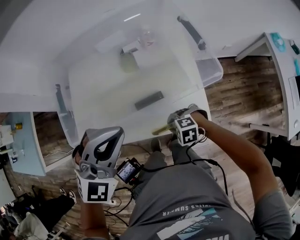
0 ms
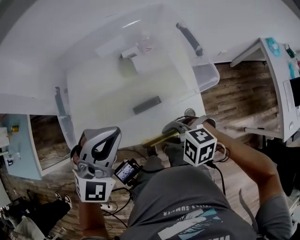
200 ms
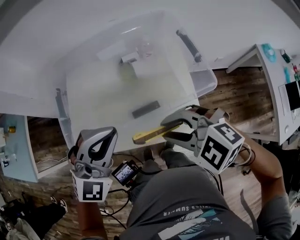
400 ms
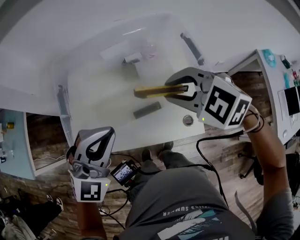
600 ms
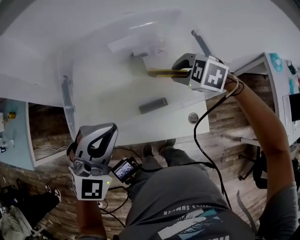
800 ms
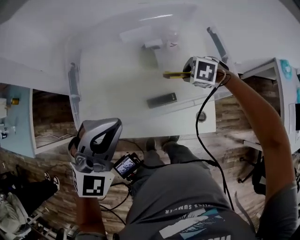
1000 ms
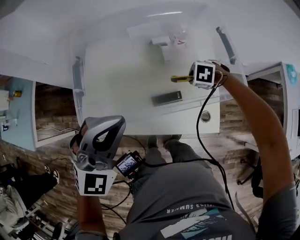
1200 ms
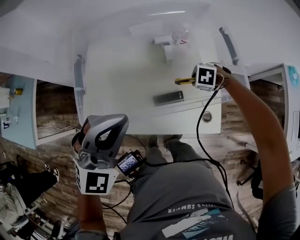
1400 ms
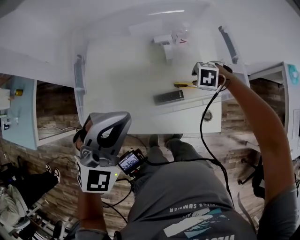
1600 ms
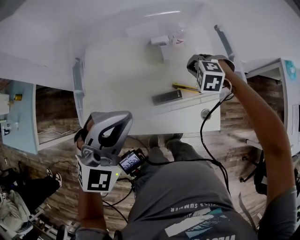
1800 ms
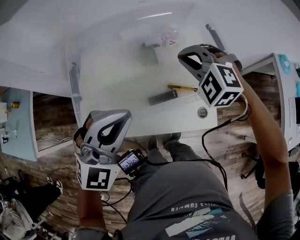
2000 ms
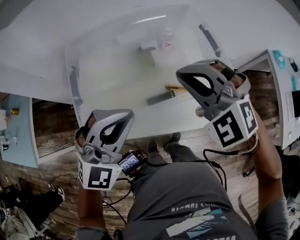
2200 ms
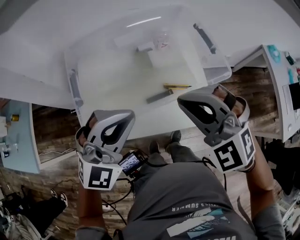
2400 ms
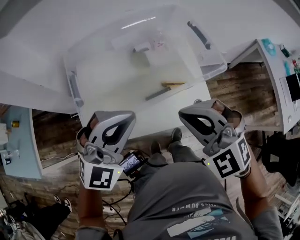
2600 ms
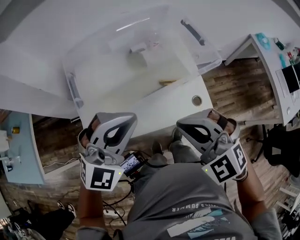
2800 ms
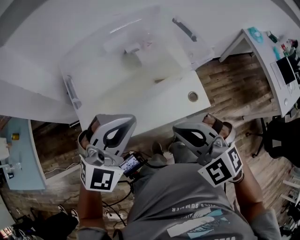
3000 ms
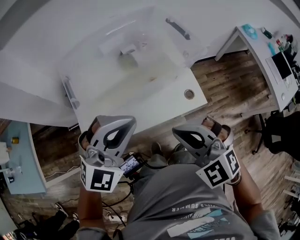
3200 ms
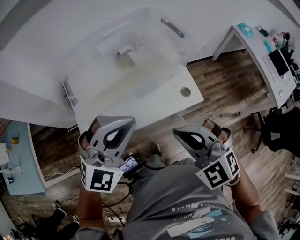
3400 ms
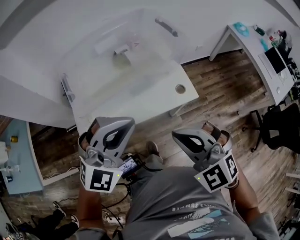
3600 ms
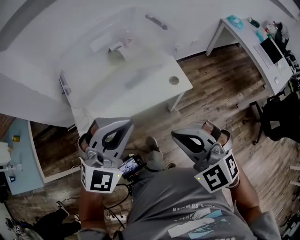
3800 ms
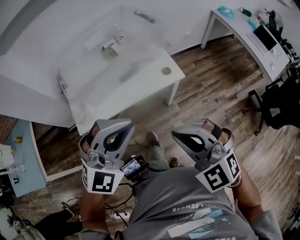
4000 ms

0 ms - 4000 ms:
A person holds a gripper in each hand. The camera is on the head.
0 ms - 1400 ms: The left gripper ends up roughly 5 cm from where it was; the right gripper moves about 30 cm upward and comes back.
1400 ms - 2600 ms: The right gripper is displaced upward by approximately 30 cm, tilts its fingers roughly 50 degrees upward, and closes its fingers.
2600 ms - 4000 ms: The two grippers go about 25 cm backward.

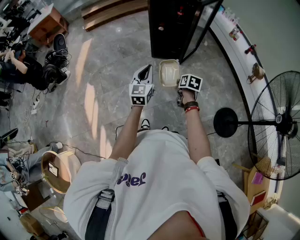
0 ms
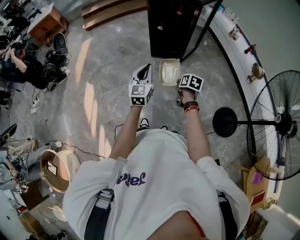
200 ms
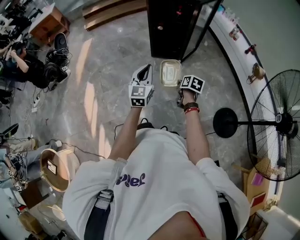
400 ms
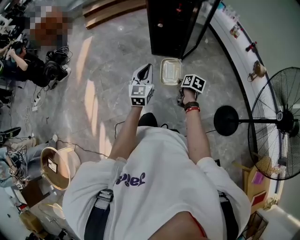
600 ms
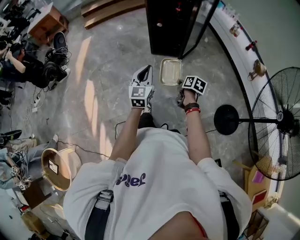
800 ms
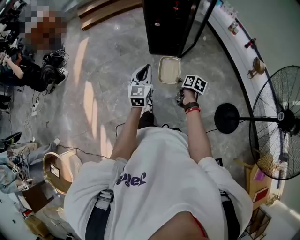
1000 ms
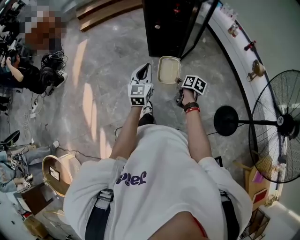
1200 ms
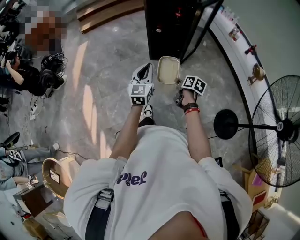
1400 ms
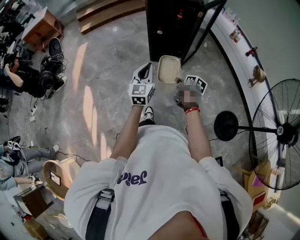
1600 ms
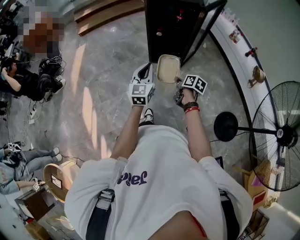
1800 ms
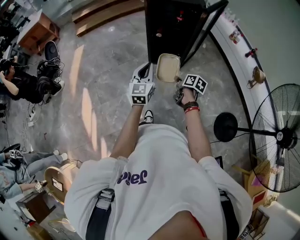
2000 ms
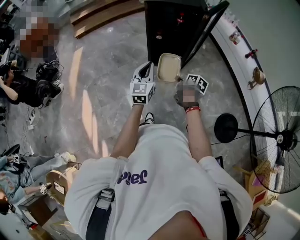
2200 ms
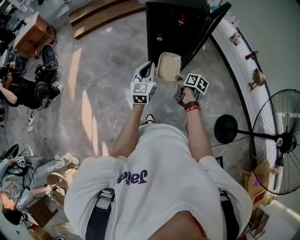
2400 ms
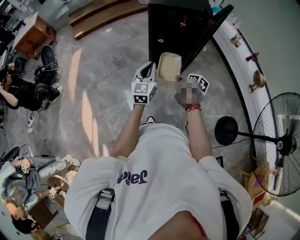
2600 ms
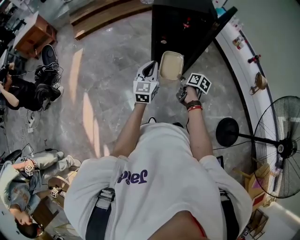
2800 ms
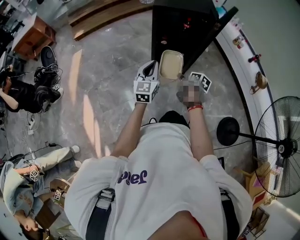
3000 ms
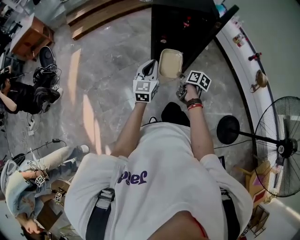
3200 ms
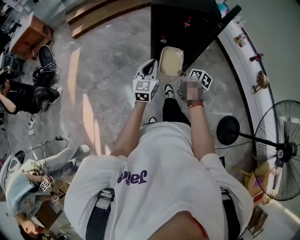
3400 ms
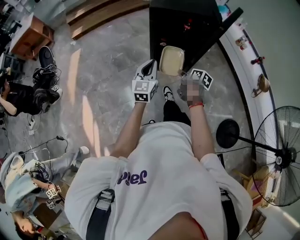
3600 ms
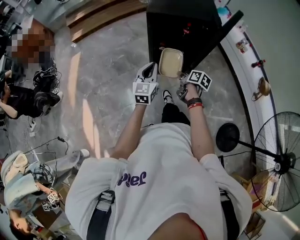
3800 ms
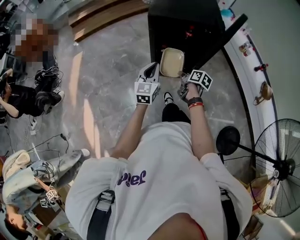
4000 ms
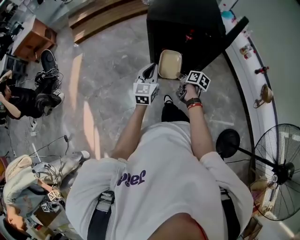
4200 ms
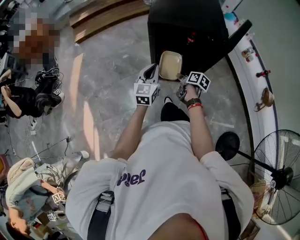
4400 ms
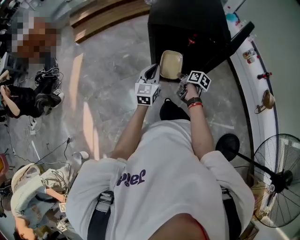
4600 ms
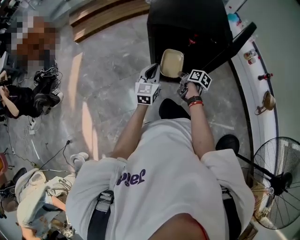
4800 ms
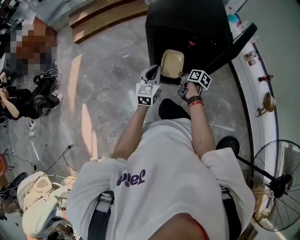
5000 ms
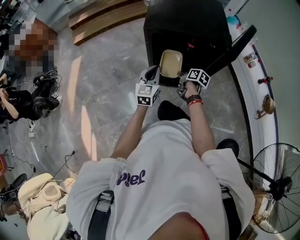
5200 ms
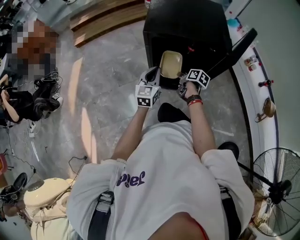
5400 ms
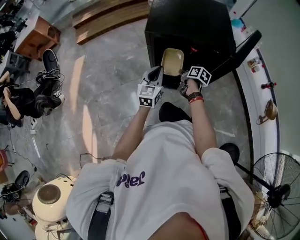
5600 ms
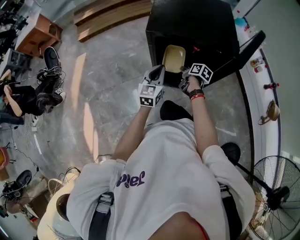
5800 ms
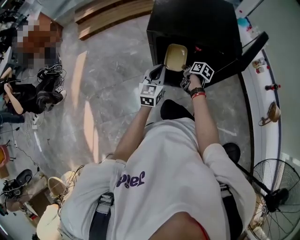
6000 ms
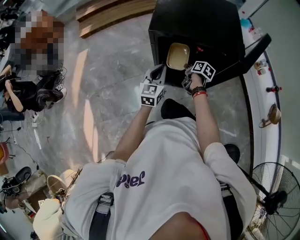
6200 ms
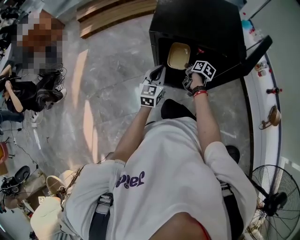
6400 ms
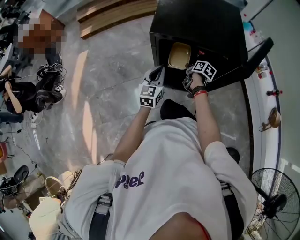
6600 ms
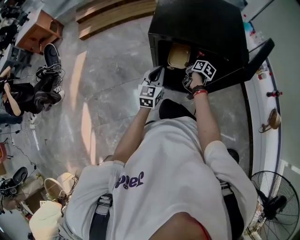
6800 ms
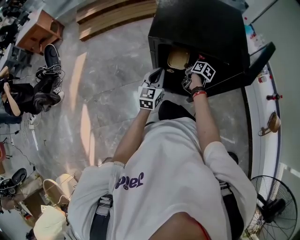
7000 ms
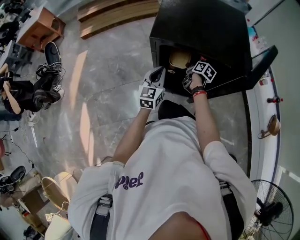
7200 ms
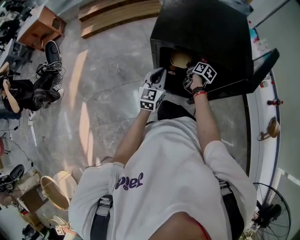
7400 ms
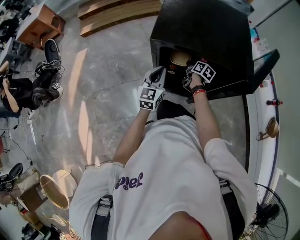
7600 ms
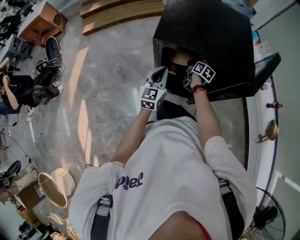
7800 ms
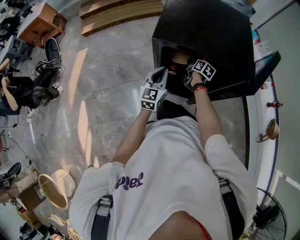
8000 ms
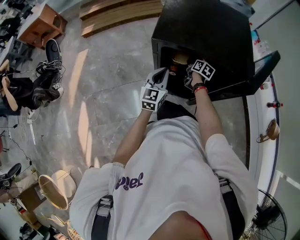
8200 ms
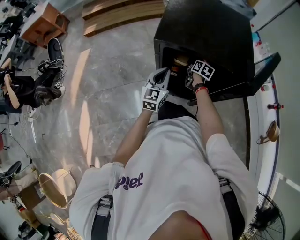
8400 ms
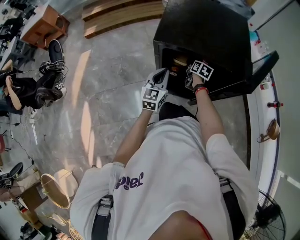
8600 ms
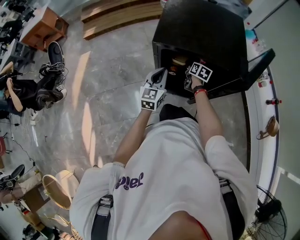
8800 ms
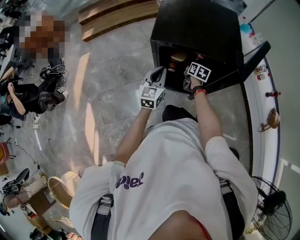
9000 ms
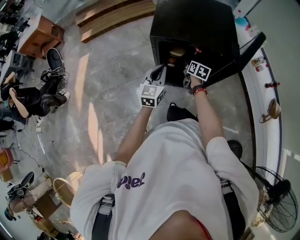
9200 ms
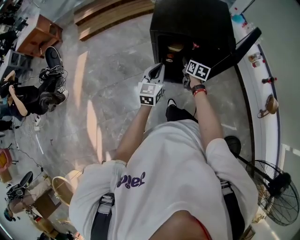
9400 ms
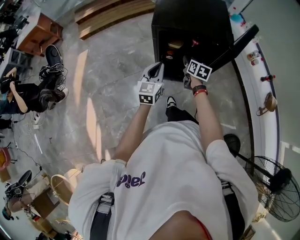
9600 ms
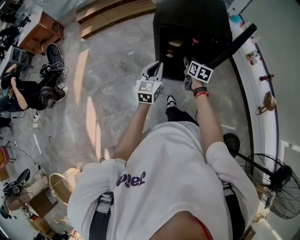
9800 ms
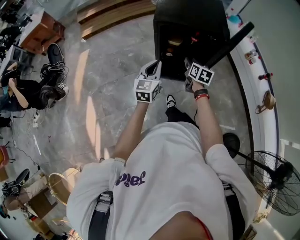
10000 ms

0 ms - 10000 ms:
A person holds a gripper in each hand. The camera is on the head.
0 ms - 1400 ms: Both grippers travel together forward, some 10 cm.
1400 ms - 2800 ms: Both grippers travel together forward, roughly 25 cm.
2800 ms - 4200 ms: The grippers both shift forward by about 20 cm.
4200 ms - 5800 ms: The left gripper shifts roughly 15 cm forward and downward. The right gripper goes some 20 cm forward.
5800 ms - 7200 ms: The right gripper goes about 10 cm forward. The left gripper is displaced forward and downward by approximately 10 cm.
7200 ms - 8600 ms: The right gripper changes its angle by about 20 degrees, and opens.
8600 ms - 10000 ms: Both grippers move backward and upward, approximately 30 cm.

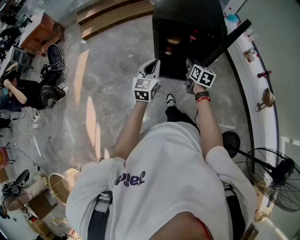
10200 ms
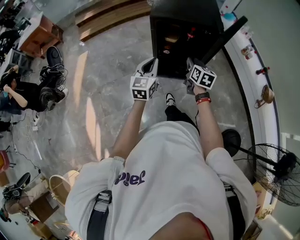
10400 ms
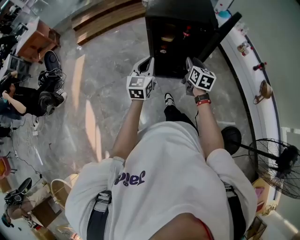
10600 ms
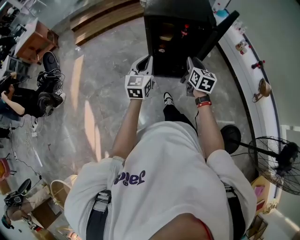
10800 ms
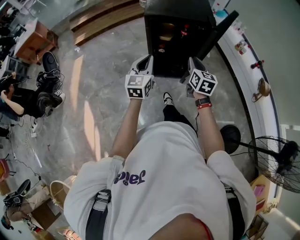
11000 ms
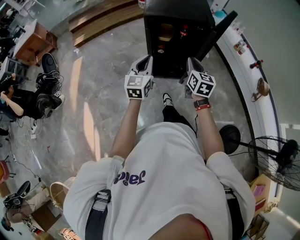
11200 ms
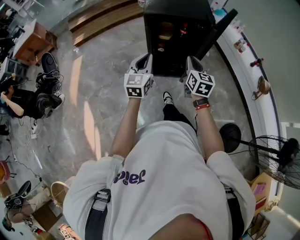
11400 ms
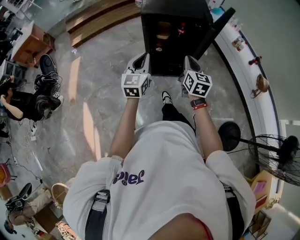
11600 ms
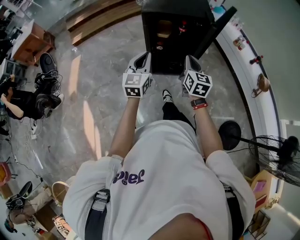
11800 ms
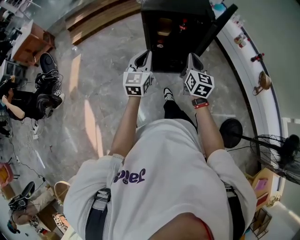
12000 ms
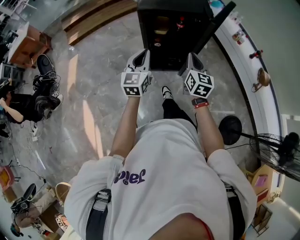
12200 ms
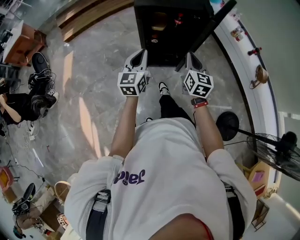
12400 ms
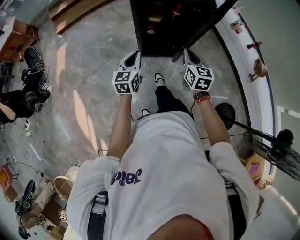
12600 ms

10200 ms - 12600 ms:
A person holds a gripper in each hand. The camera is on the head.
10200 ms - 11400 ms: The right gripper moves backward and upward, some 15 cm, and closes its fingers. The left gripper moves backward, about 5 cm.
11400 ms - 12600 ms: The right gripper is displaced forward and downward by approximately 10 cm, while the left gripper travels downward and forward by roughly 10 cm.

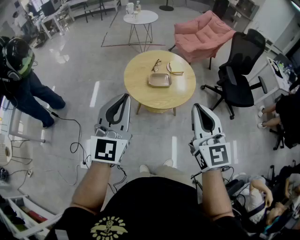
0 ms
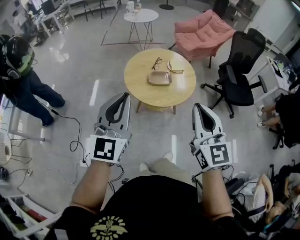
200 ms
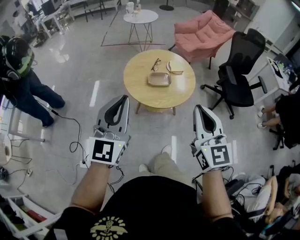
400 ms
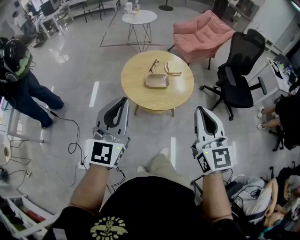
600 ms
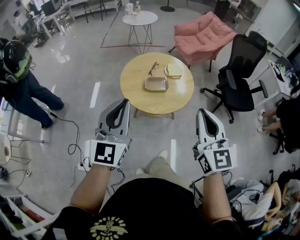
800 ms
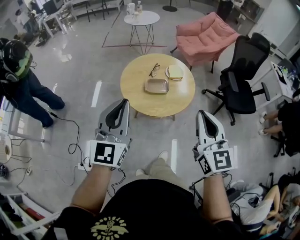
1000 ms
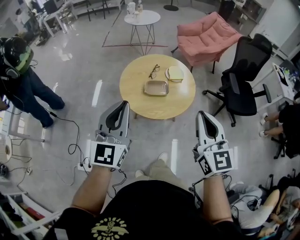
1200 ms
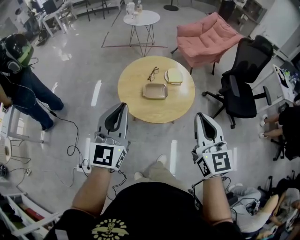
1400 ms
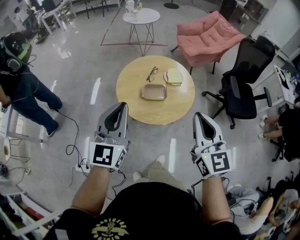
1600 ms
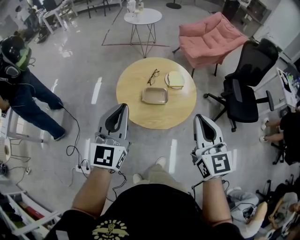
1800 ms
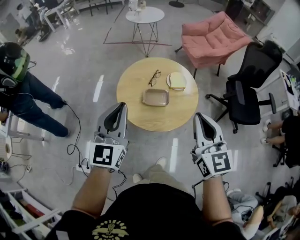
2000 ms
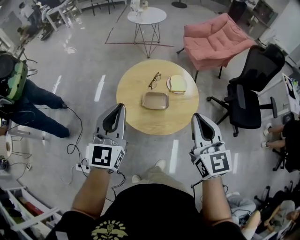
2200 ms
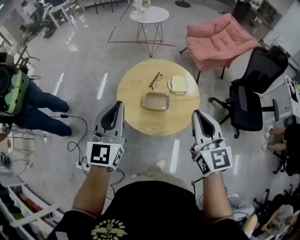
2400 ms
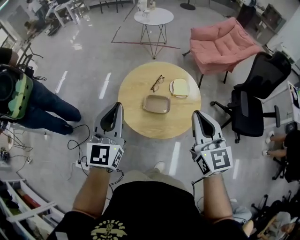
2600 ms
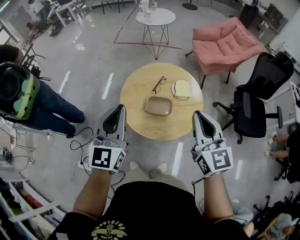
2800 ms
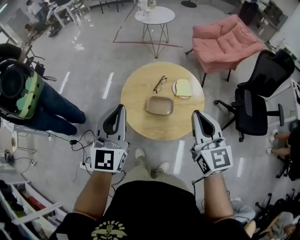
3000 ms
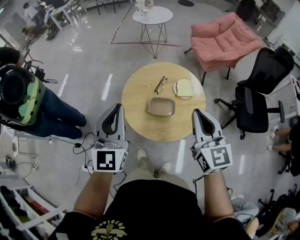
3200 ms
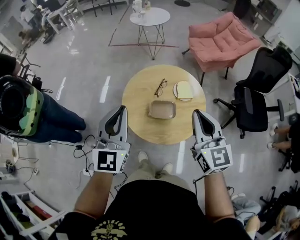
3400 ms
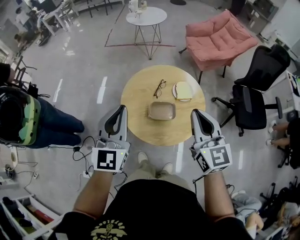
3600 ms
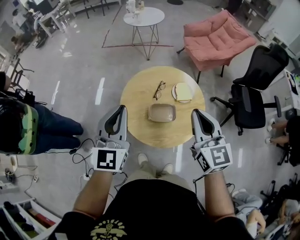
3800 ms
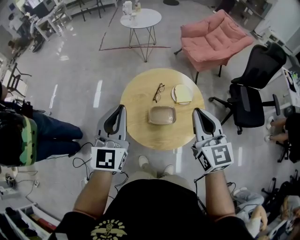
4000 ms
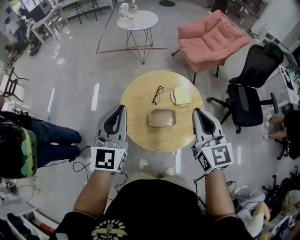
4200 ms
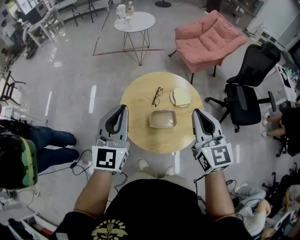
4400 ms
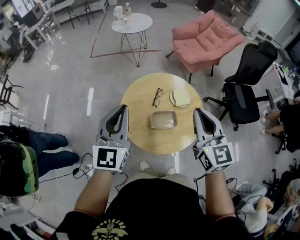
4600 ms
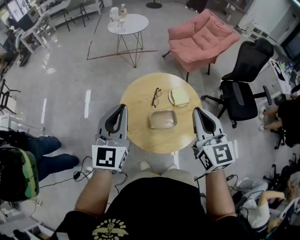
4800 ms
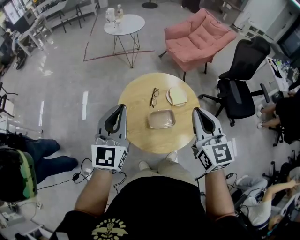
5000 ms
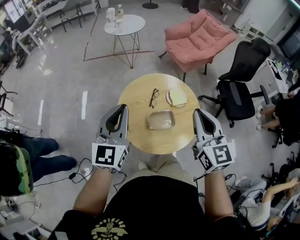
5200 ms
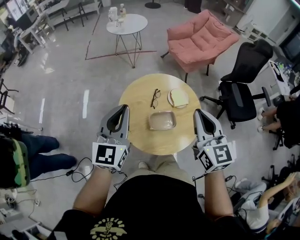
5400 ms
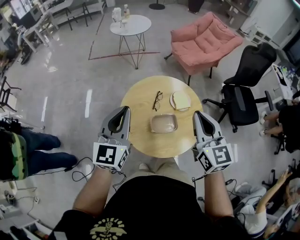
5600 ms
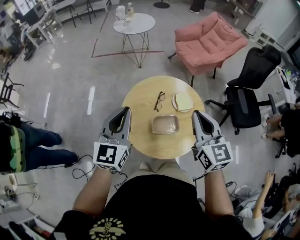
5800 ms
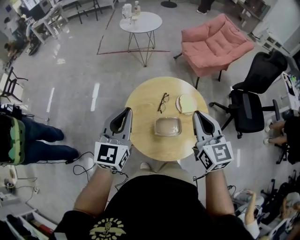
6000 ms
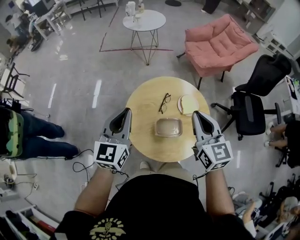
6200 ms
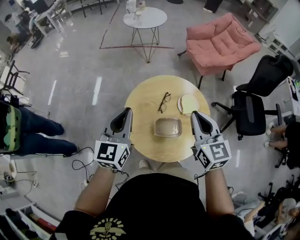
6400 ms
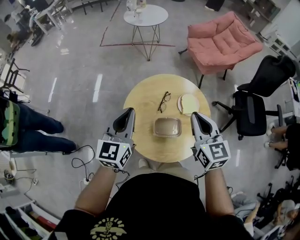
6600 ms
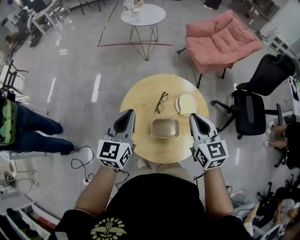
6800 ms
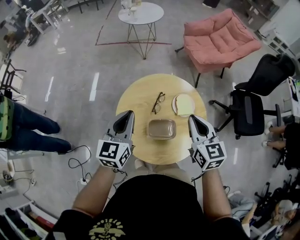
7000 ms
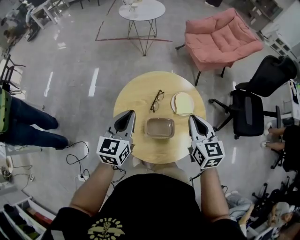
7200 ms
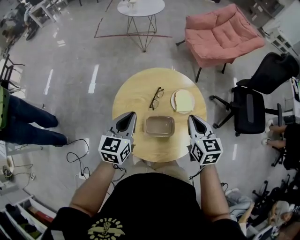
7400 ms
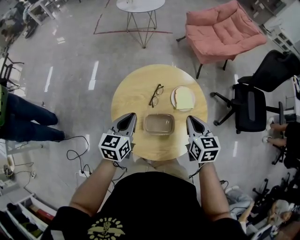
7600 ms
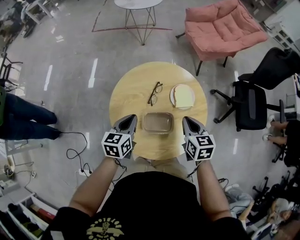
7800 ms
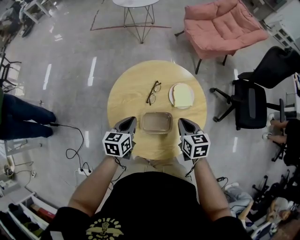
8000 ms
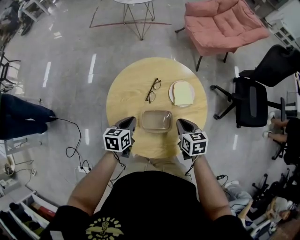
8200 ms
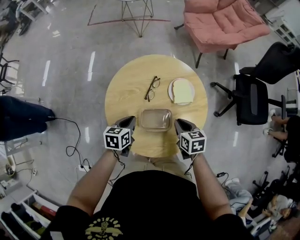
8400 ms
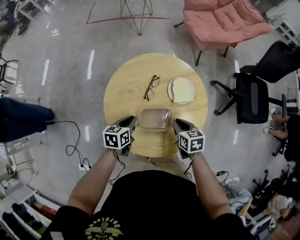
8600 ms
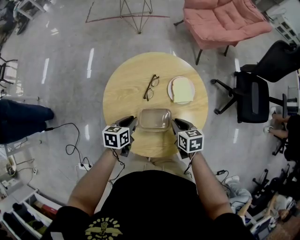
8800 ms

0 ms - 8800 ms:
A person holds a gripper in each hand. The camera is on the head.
0 ms - 1400 ms: The right gripper heads forward and to the right, covering some 15 cm. Meanwhile the left gripper goes roughly 10 cm forward.
1400 ms - 3000 ms: The two grippers go about 15 cm forward.
3000 ms - 4400 ms: The grippers both shift forward and to the left by about 10 cm.
4400 ms - 5800 ms: The left gripper ends up roughly 5 cm from where it was.
5800 ms - 7400 ms: The right gripper travels downward and forward by about 20 cm, and rotates about 20 degrees. The left gripper shifts some 15 cm downward, and rotates about 20 degrees.
7400 ms - 8800 ms: The grippers both shift downward by roughly 20 cm. The left gripper turns by roughly 30 degrees; the right gripper changes its angle by approximately 30 degrees.
